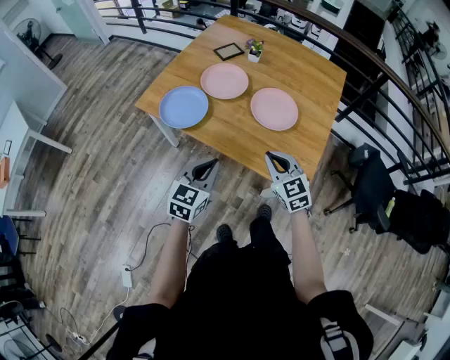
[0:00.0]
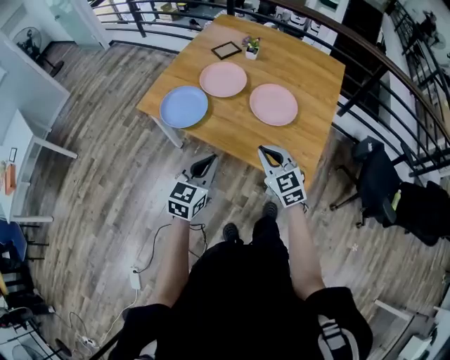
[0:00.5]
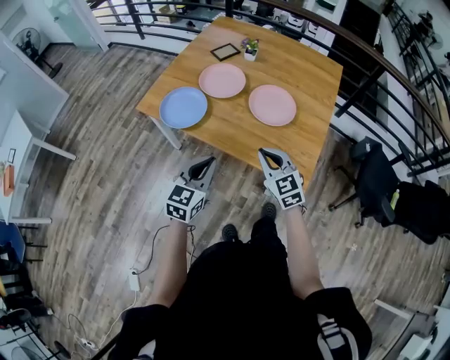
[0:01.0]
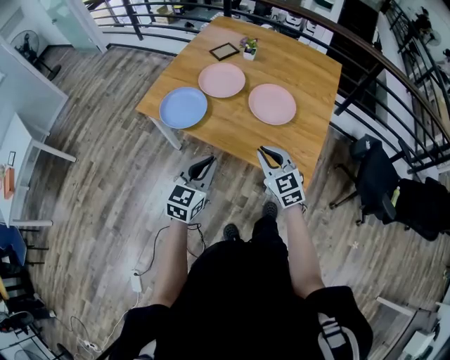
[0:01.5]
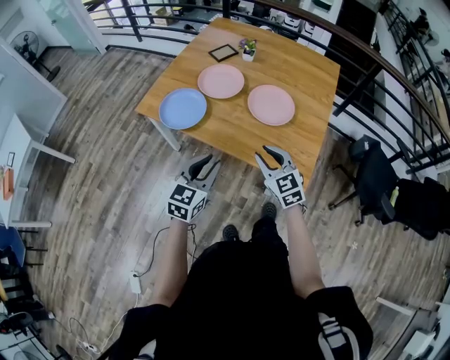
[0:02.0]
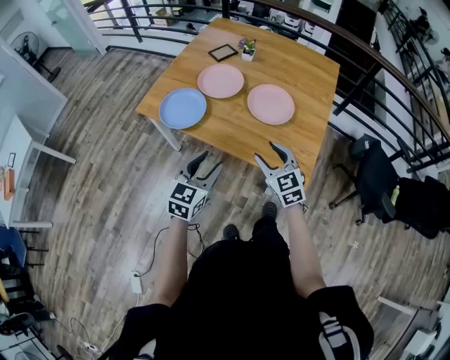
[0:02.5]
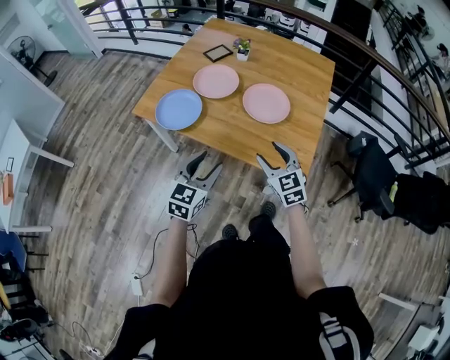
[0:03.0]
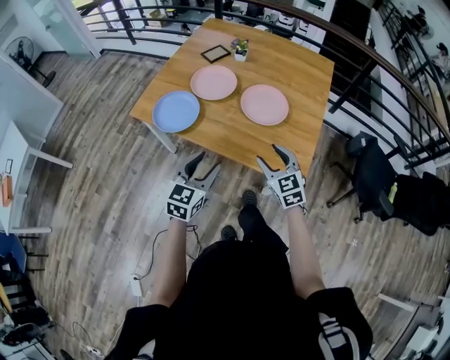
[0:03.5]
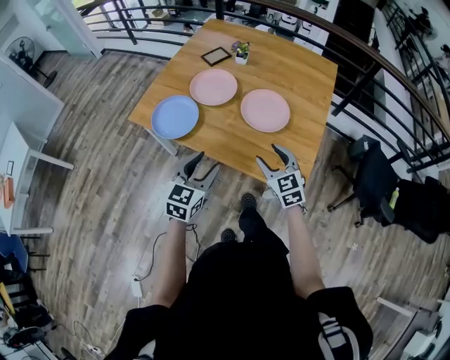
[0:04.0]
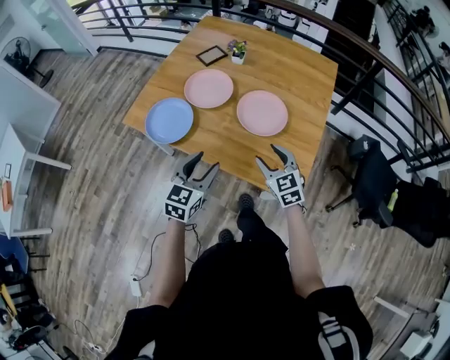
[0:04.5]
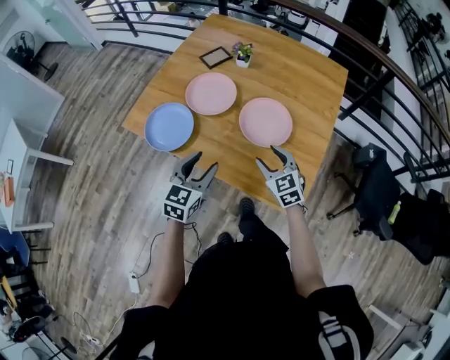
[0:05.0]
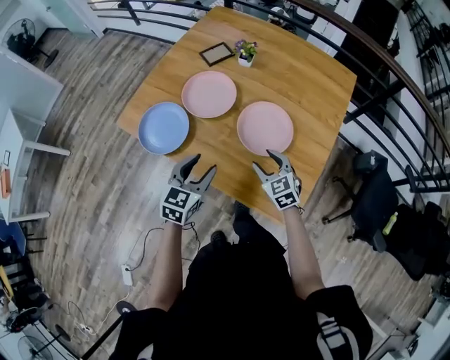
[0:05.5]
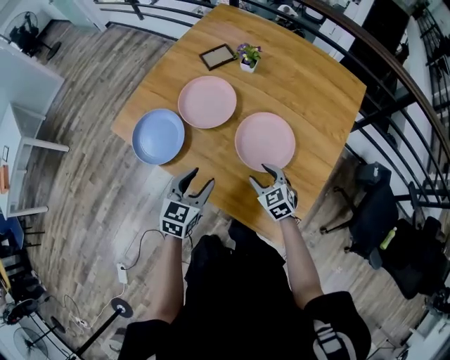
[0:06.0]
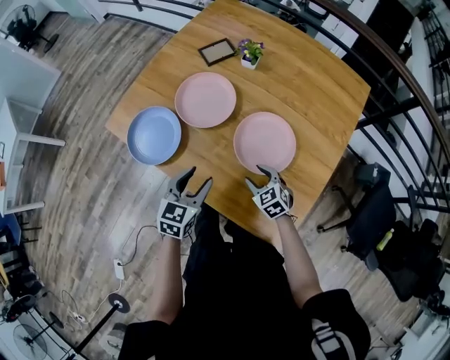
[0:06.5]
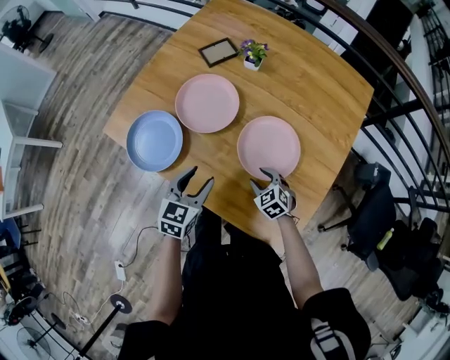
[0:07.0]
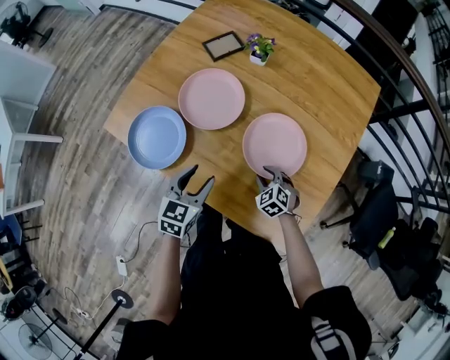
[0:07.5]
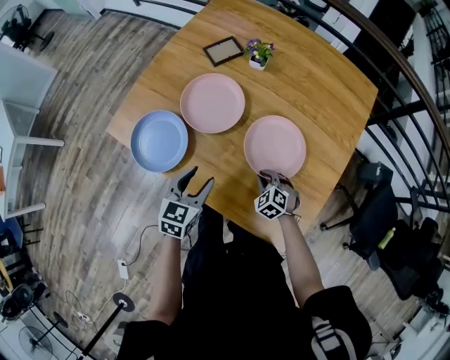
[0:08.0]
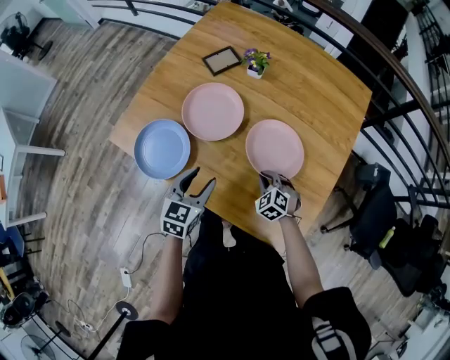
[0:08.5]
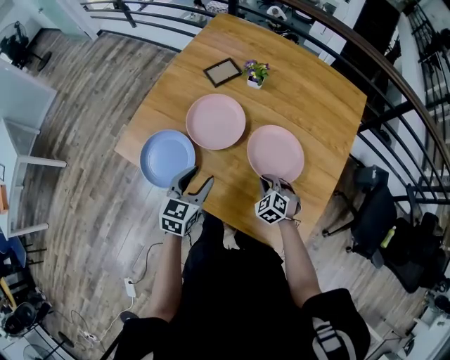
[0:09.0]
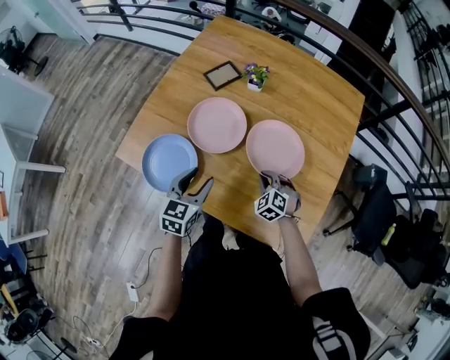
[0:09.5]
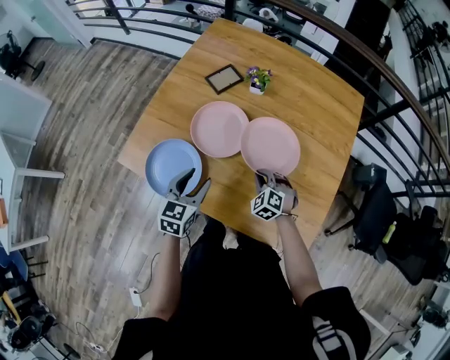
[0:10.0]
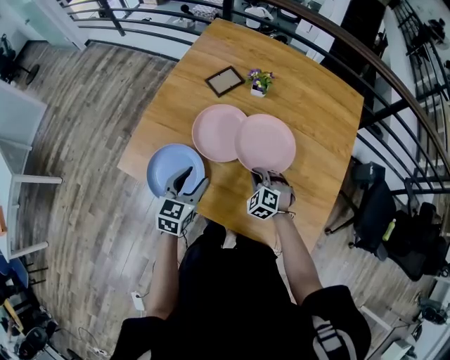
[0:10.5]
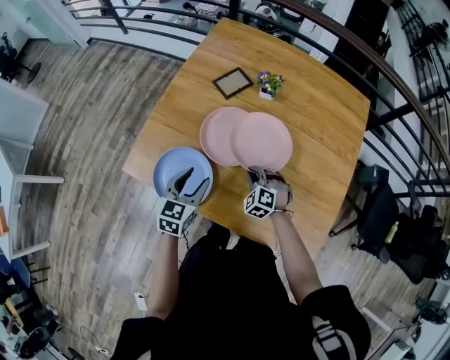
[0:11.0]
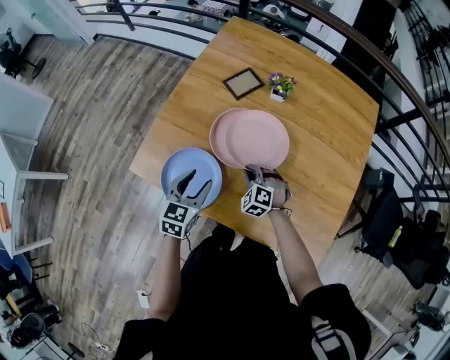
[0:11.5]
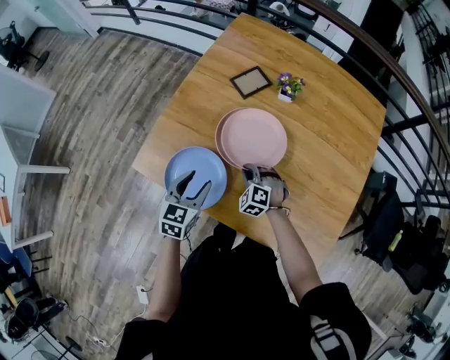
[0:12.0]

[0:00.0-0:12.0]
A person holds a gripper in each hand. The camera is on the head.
0.0 to 2.0 s: The right gripper opens its fingers.
2.0 to 4.0 s: The right gripper ends up some 5 cm from where it was, and opens; the left gripper changes place by some 5 cm, and opens its fingers.
4.0 to 6.0 s: Both grippers move forward and downward, about 20 cm. The right gripper changes its angle by about 20 degrees.
6.0 to 8.0 s: The right gripper heads downward, covering roughly 10 cm, changes its angle by about 20 degrees, and closes up, while the left gripper is displaced forward by roughly 5 cm.
8.0 to 10.0 s: The right gripper heads upward, to the left and forward, covering about 10 cm. The left gripper moves to the left, about 10 cm.
10.0 to 12.0 s: The left gripper is displaced to the left by roughly 10 cm; the right gripper heads to the left, covering about 15 cm.

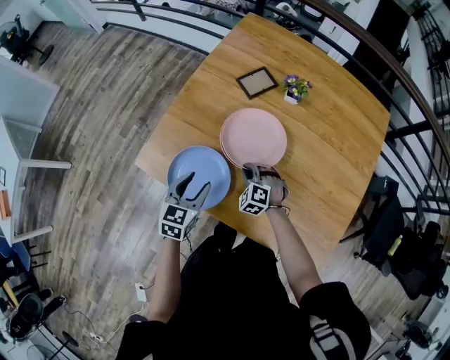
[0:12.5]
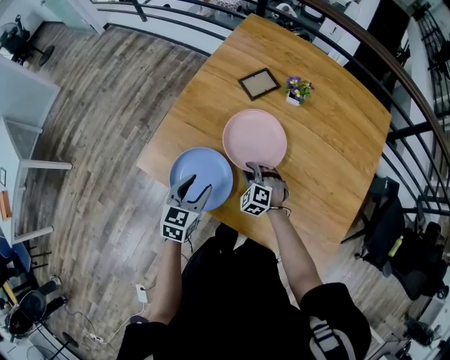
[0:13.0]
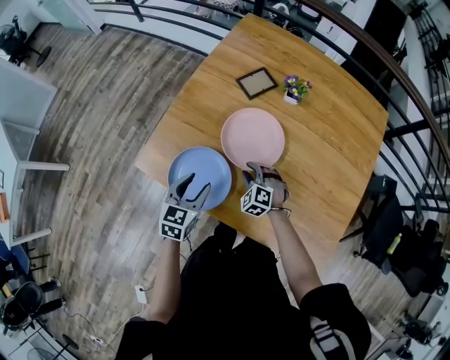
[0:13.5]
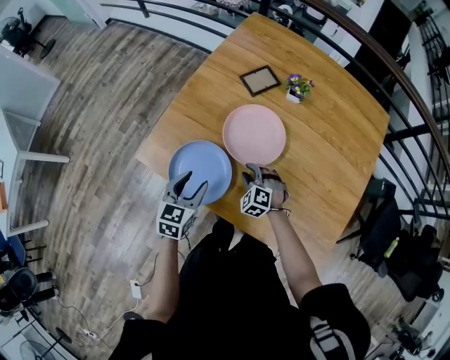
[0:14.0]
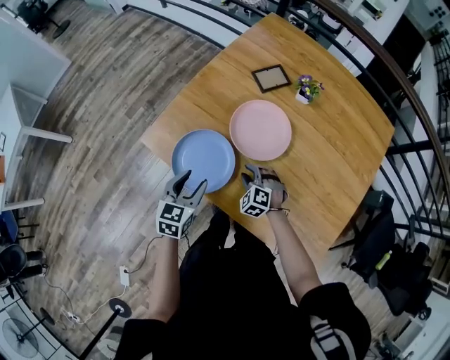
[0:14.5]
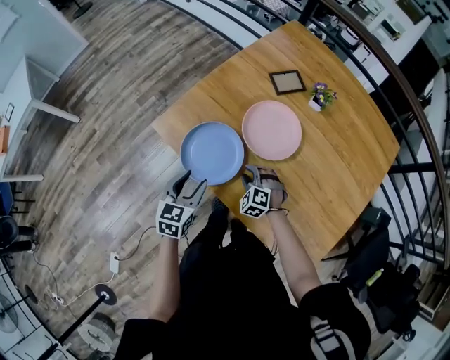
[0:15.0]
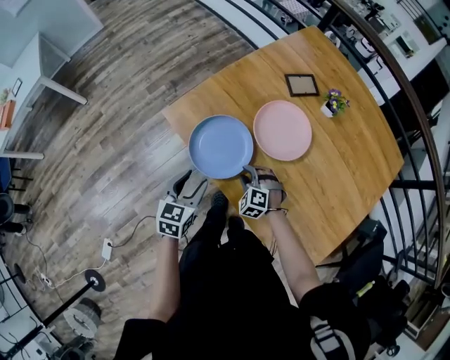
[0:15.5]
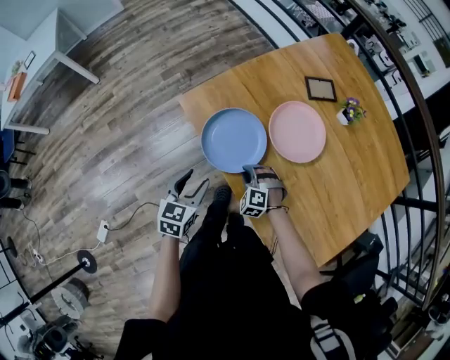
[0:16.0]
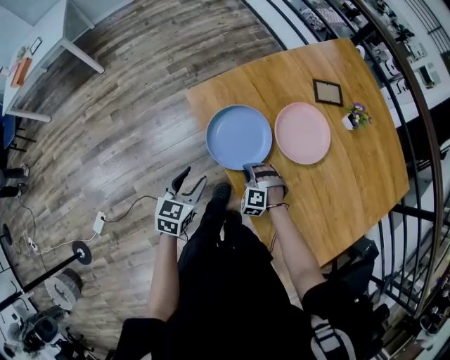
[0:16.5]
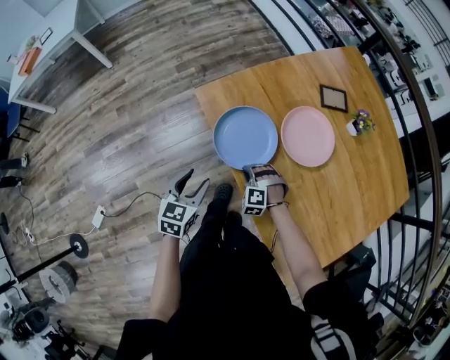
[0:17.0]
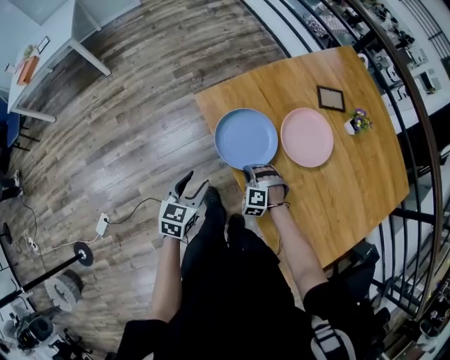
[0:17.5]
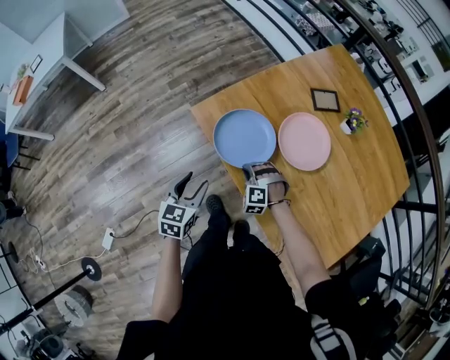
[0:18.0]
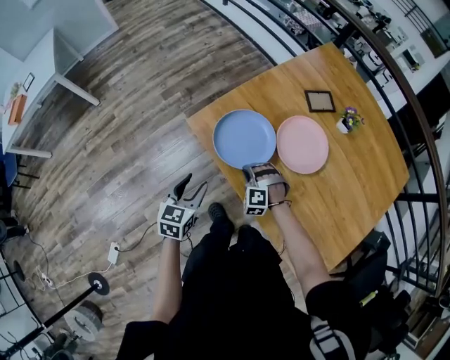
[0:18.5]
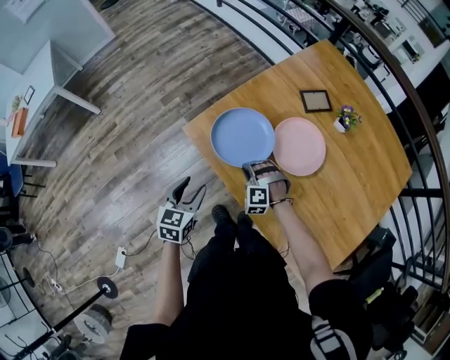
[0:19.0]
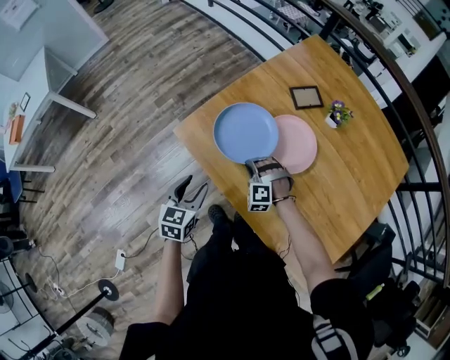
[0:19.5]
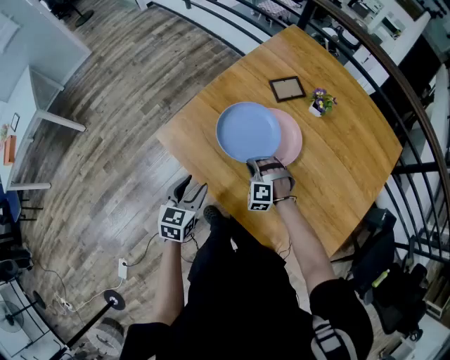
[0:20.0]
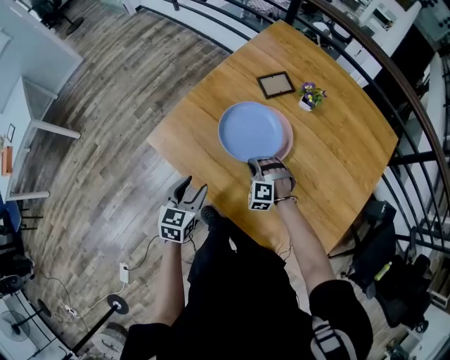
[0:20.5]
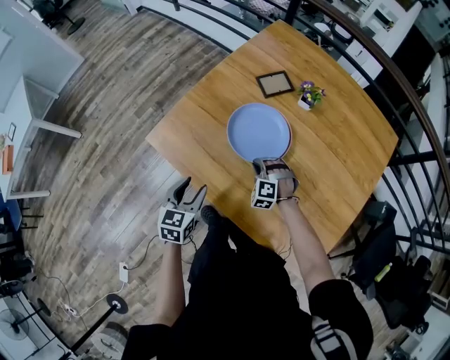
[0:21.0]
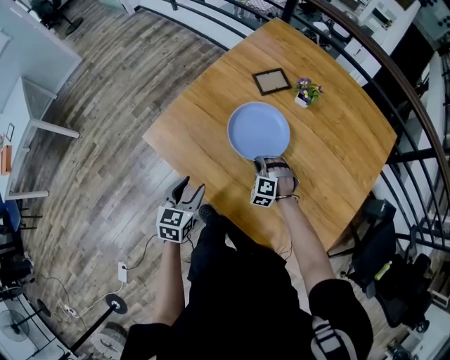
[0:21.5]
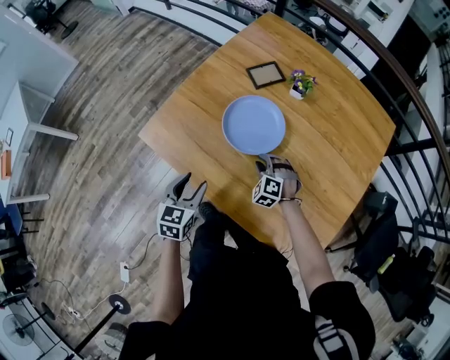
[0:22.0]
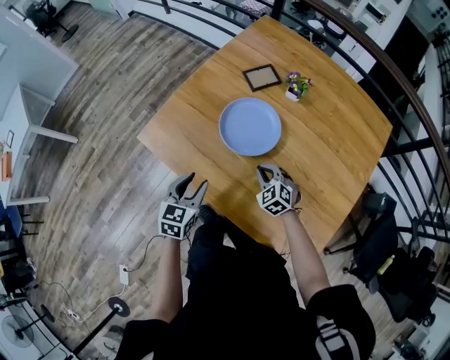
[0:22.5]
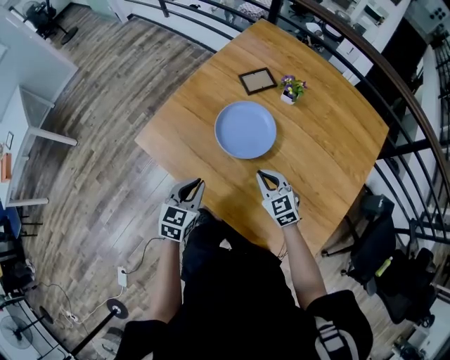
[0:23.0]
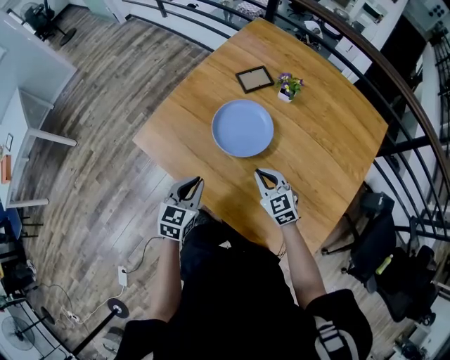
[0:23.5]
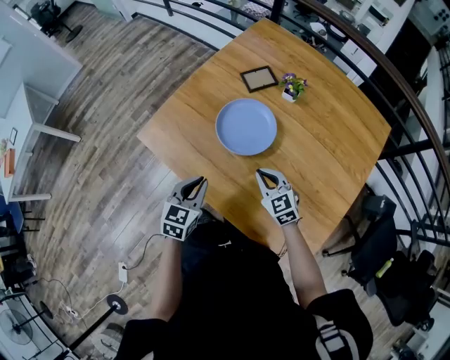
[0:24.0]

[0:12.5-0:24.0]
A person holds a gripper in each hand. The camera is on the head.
12.5 to 14.5 s: The two grippers go some 5 cm backward. The right gripper opens up.
14.5 to 16.5 s: The right gripper moves to the left and backward, about 10 cm, turns by approximately 40 degrees, and closes up, while the left gripper is displaced backward and to the left by roughly 15 cm, and changes its angle by approximately 20 degrees.
16.5 to 18.5 s: Both grippers move forward, approximately 5 cm.
18.5 to 20.0 s: The grippers both shift to the right by some 10 cm.
20.0 to 22.0 s: The right gripper goes some 10 cm to the right, and swivels about 20 degrees. The left gripper goes about 5 cm to the right.
22.0 to 24.0 s: The right gripper shifts roughly 10 cm upward and backward, turns by roughly 50 degrees, and closes. Meanwhile the left gripper moves about 5 cm, and closes.

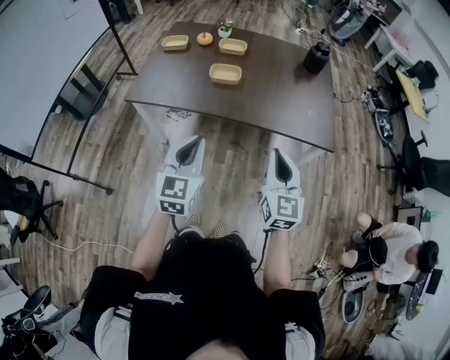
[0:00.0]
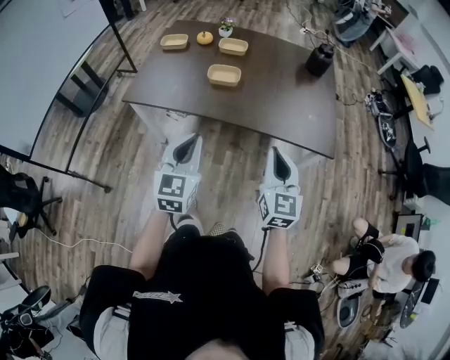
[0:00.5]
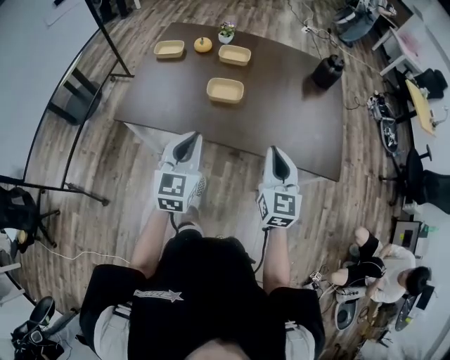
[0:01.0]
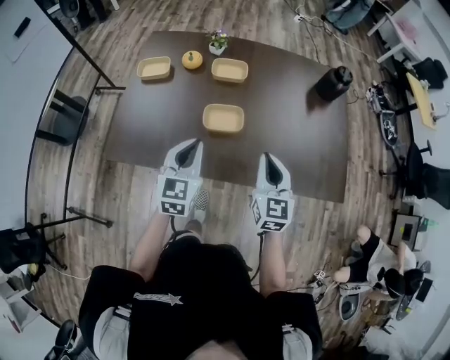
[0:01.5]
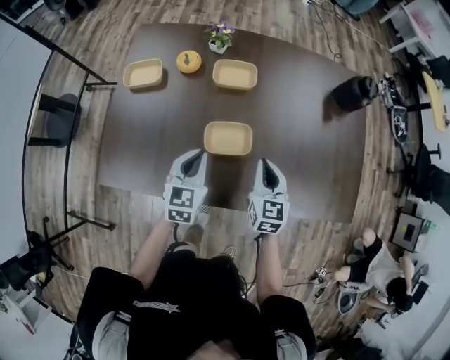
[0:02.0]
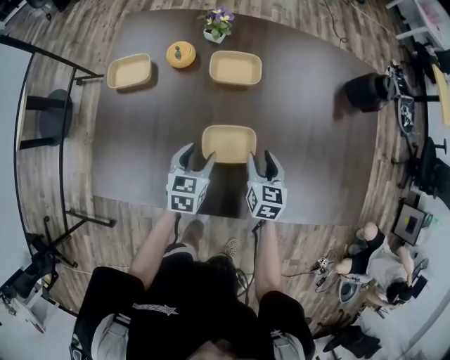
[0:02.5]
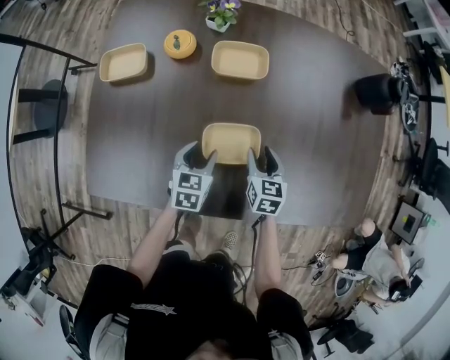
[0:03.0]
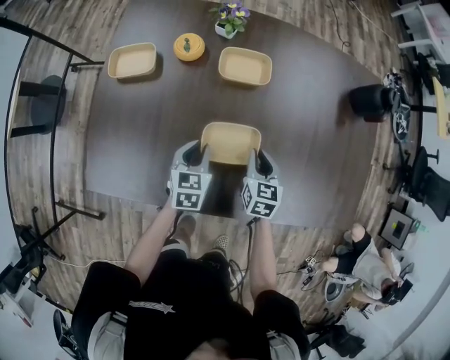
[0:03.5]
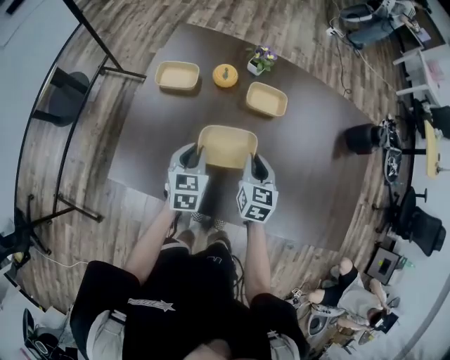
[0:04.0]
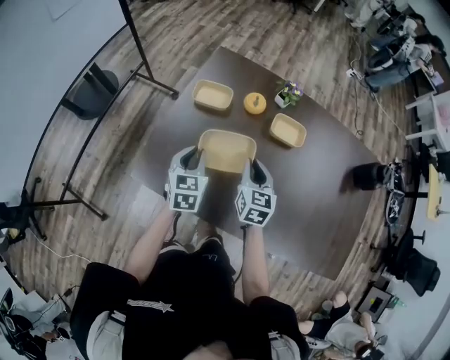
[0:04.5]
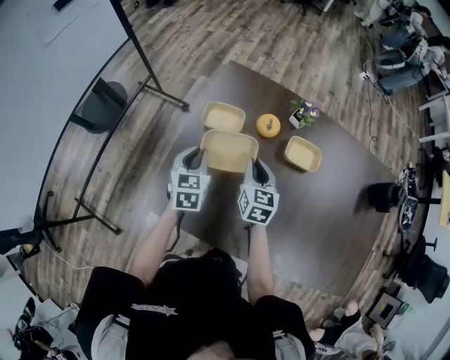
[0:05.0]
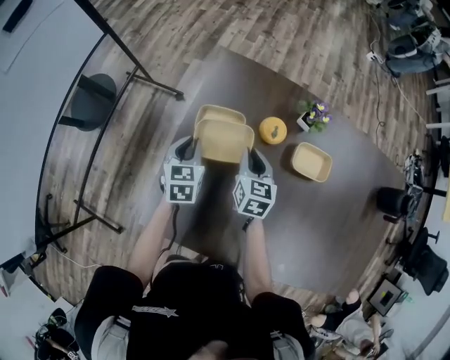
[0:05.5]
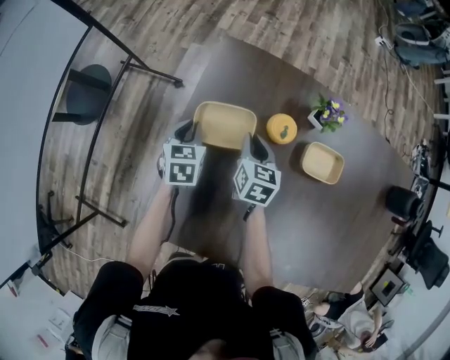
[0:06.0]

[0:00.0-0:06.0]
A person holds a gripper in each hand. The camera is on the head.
0.0 to 2.0 s: The two grippers travel together, forward, approximately 50 cm. The right gripper goes approximately 20 cm downward, and changes its angle by roughly 20 degrees.
2.0 to 4.0 s: The left gripper moves to the left, roughly 10 cm, travels downward and back again, some 15 cm each way, and opens, then closes once more, while the right gripper shifts roughly 15 cm to the left and forward, moves about 15 cm downward and comes back, and opens and closes again.
4.0 to 6.0 s: Both grippers move forward and to the left, approximately 35 cm.
